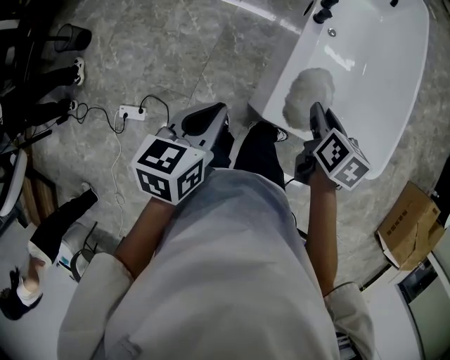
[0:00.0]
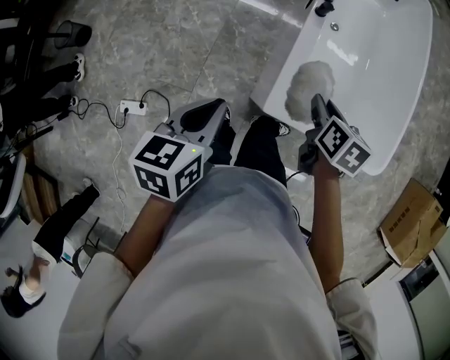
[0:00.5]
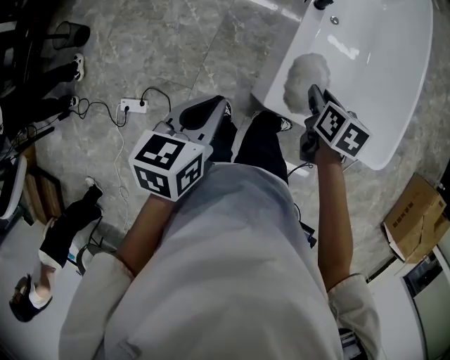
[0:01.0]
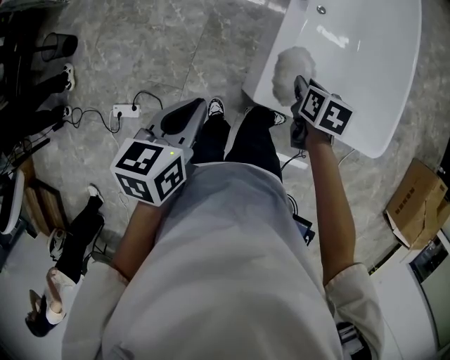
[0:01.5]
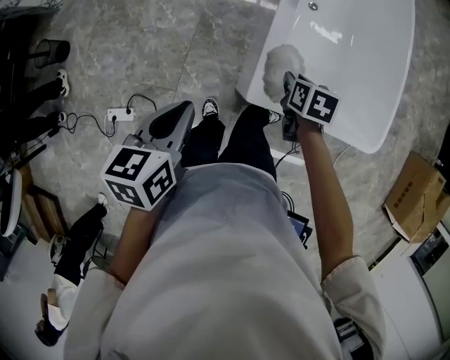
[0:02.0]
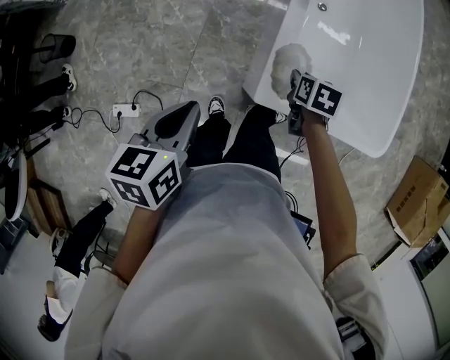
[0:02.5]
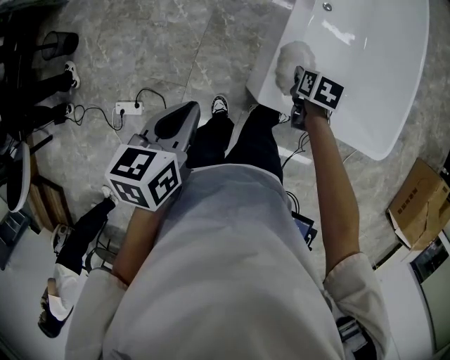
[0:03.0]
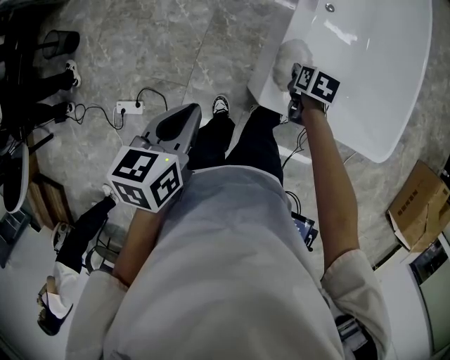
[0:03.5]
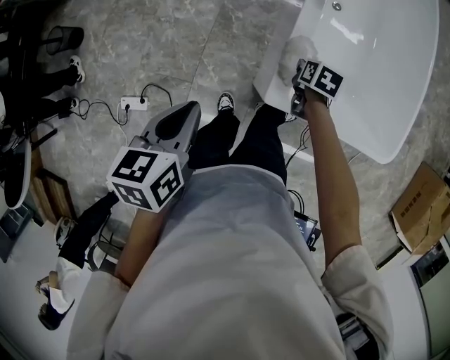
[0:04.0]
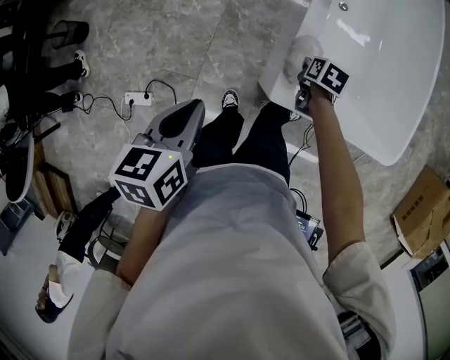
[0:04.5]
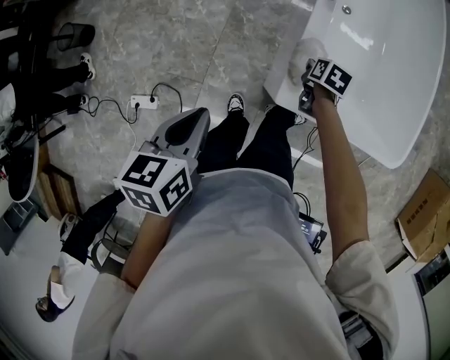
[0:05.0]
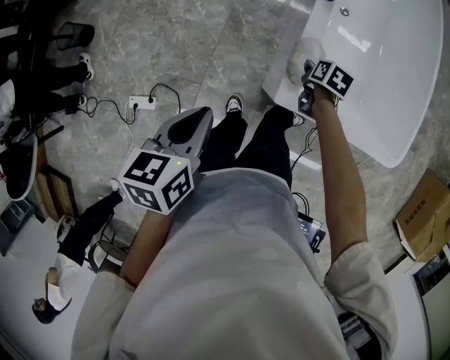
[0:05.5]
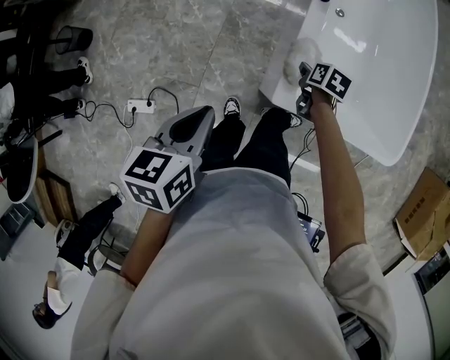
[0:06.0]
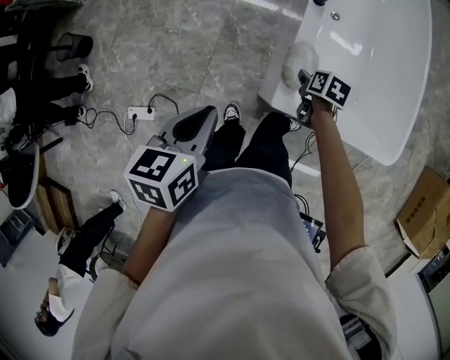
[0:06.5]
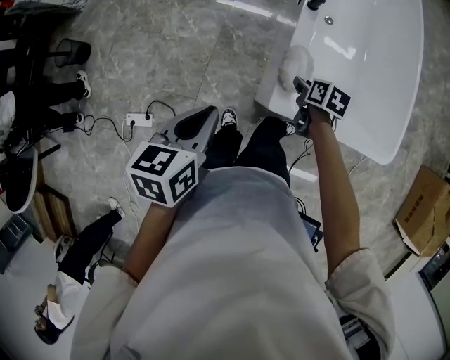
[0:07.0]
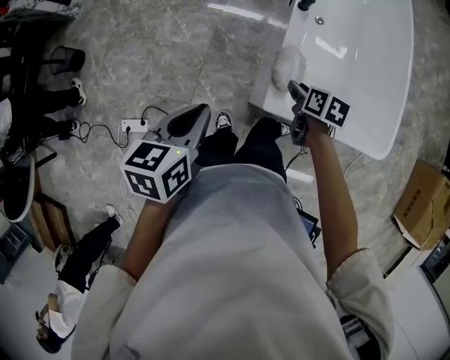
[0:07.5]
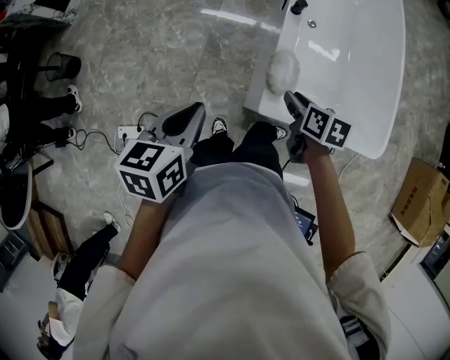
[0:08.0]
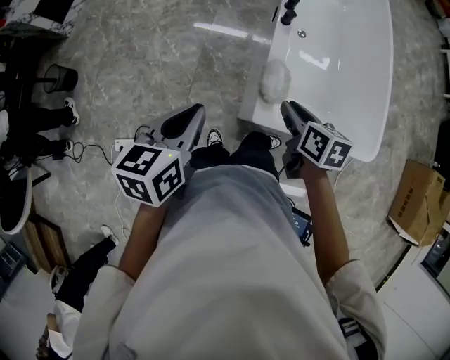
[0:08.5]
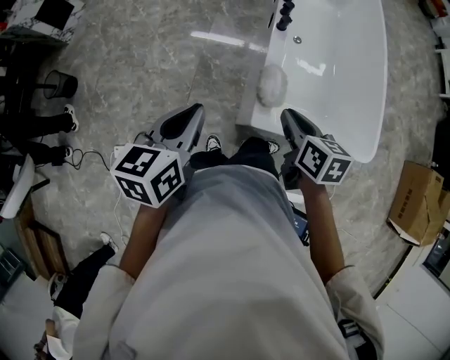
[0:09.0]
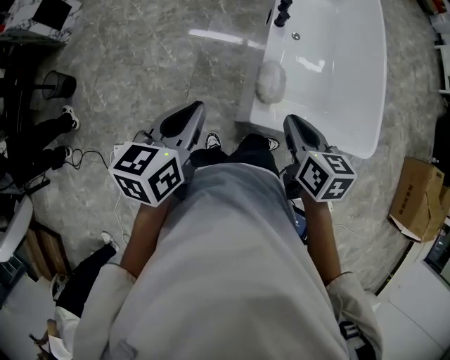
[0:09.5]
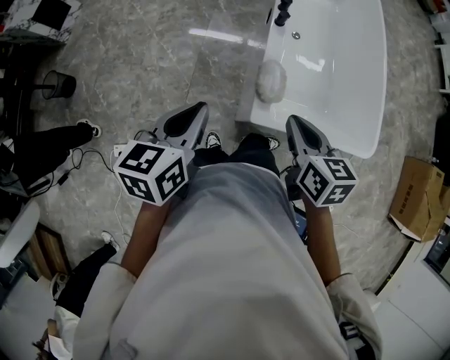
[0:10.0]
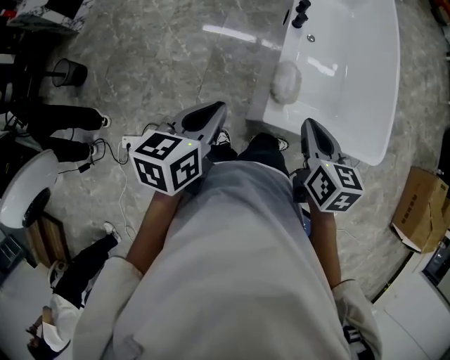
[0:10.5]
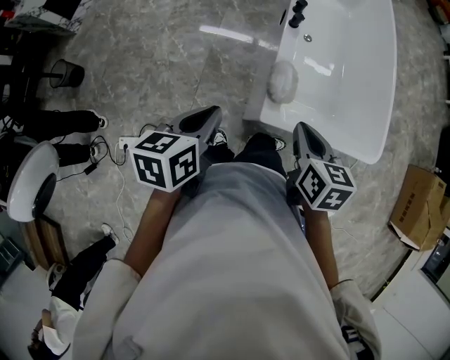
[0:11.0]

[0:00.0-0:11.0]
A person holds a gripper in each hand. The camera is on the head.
0:00.0 to 0:02.0: The right gripper goes roughly 10 cm downward.
0:02.0 to 0:03.5: The right gripper moves downward, roughly 5 cm.
0:03.5 to 0:05.5: There are only small adjustments of the grippers.
0:05.5 to 0:07.5: The right gripper is displaced upward and backward by approximately 10 cm.
0:07.5 to 0:09.0: The right gripper is displaced upward by about 15 cm, and closes, while the left gripper travels upward by approximately 5 cm.
0:09.0 to 0:11.0: The right gripper moves about 5 cm.

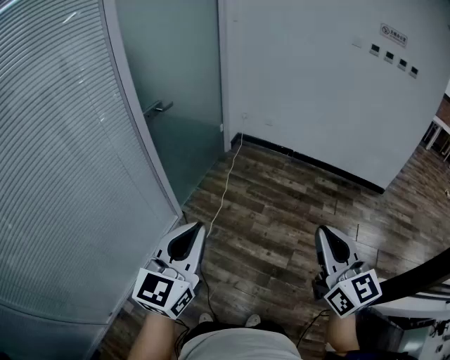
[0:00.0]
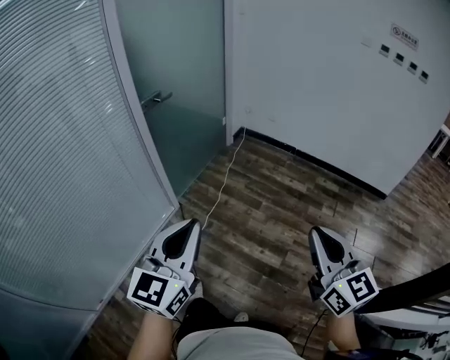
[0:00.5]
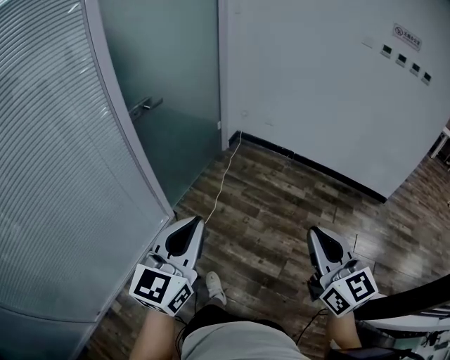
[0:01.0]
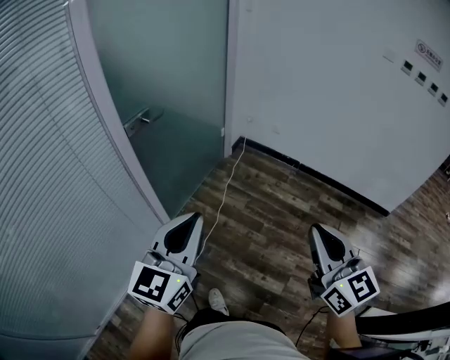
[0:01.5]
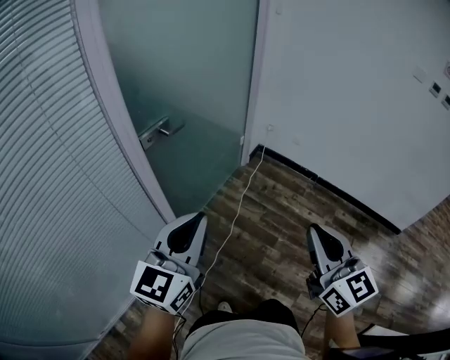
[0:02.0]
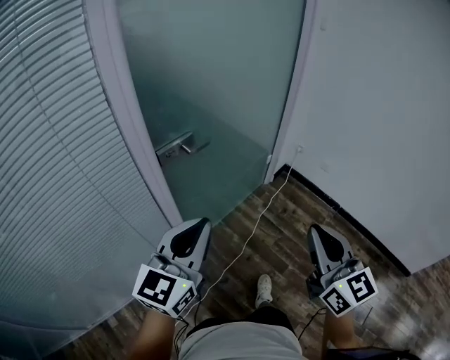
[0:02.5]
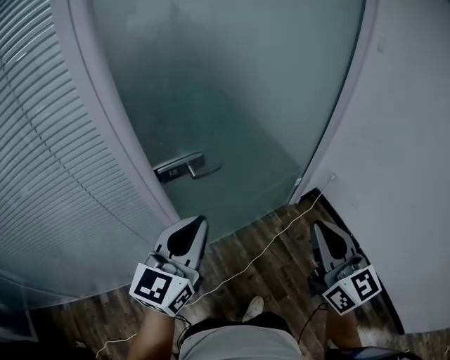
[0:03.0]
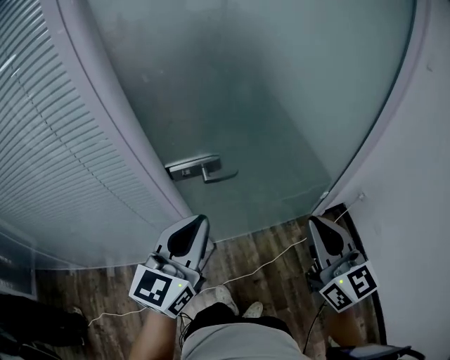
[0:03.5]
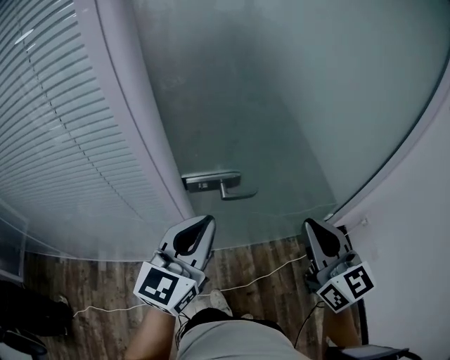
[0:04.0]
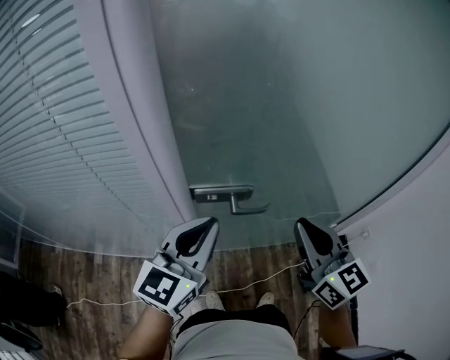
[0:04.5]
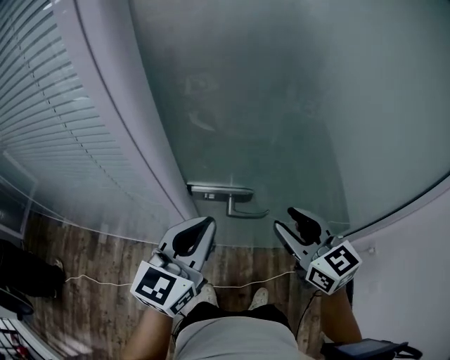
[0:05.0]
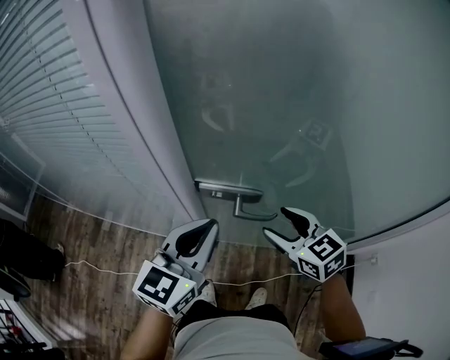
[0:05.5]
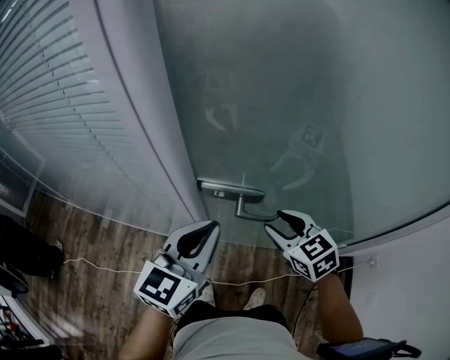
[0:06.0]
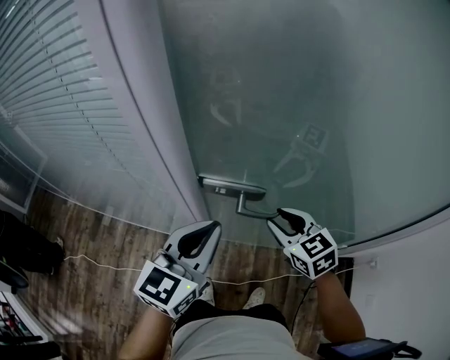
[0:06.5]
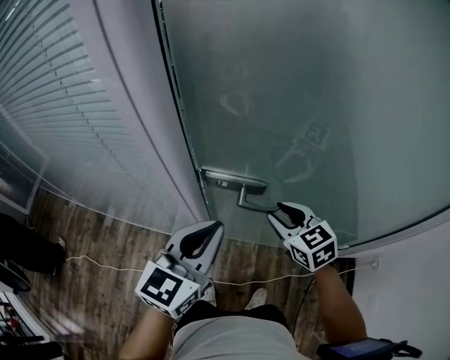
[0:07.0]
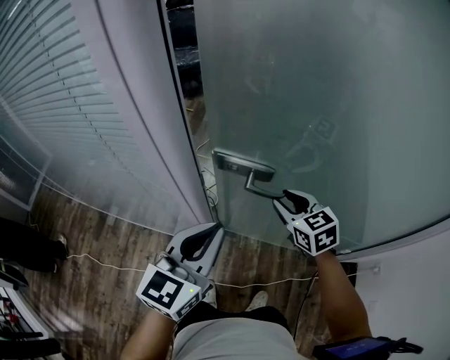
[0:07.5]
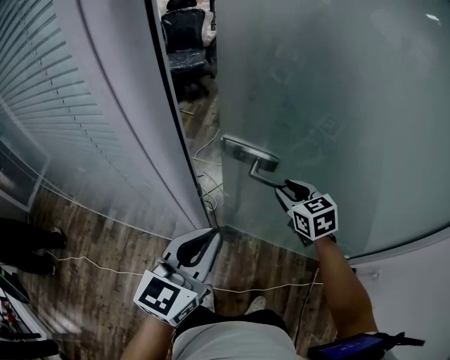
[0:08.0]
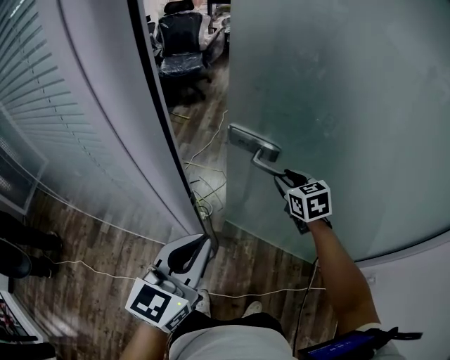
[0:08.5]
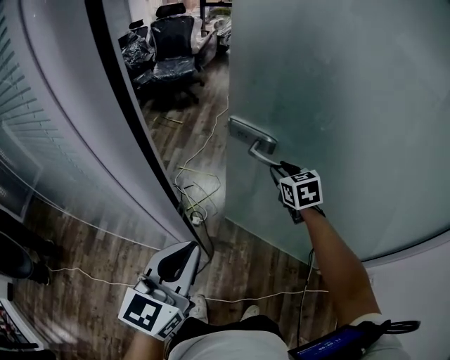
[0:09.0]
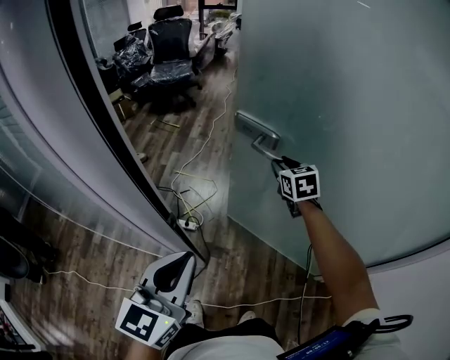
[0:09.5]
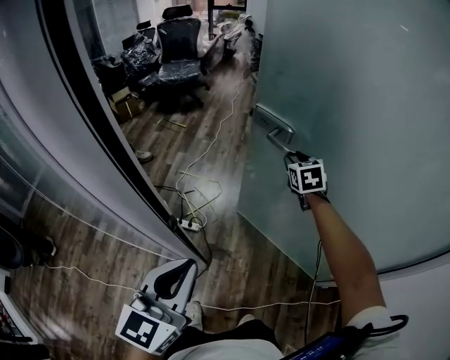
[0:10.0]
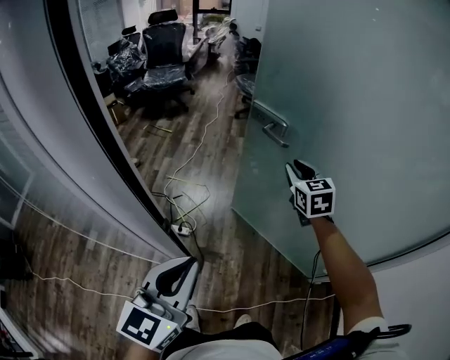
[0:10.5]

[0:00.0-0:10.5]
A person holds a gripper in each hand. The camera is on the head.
0:00.0 to 0:02.0: The two grippers go about 40 cm forward.
0:02.0 to 0:04.0: The left gripper moves some 30 cm, and changes its angle by roughly 40 degrees, while the right gripper moves approximately 50 cm, and turns by about 50 degrees.
0:04.0 to 0:06.5: The right gripper travels downward and forward by roughly 25 cm, points its fingers roughly 30 degrees further downward, and opens; the left gripper heads downward and forward, covering approximately 5 cm.
0:06.5 to 0:08.5: The right gripper heads forward, covering about 20 cm.
0:08.5 to 0:10.5: The right gripper shifts some 15 cm forward, to the right and upward.

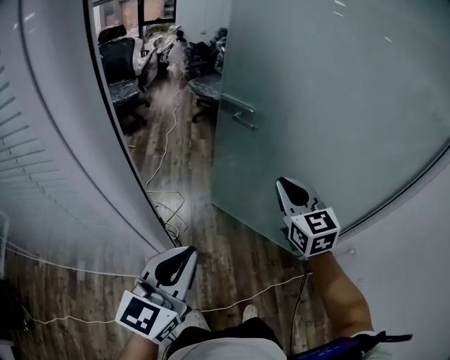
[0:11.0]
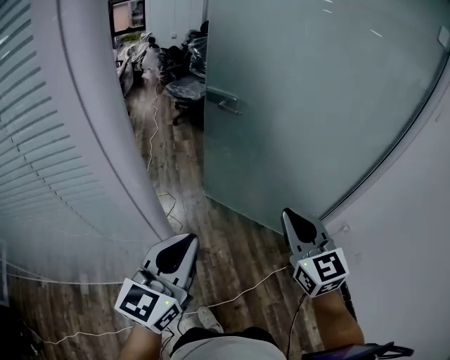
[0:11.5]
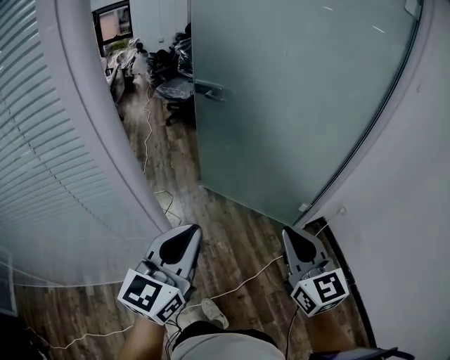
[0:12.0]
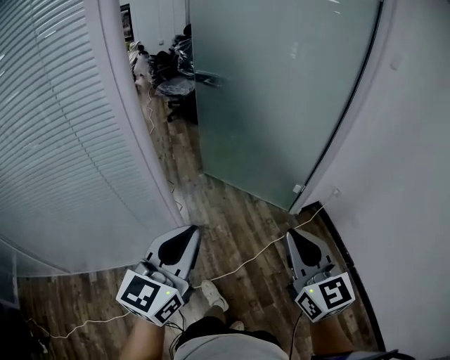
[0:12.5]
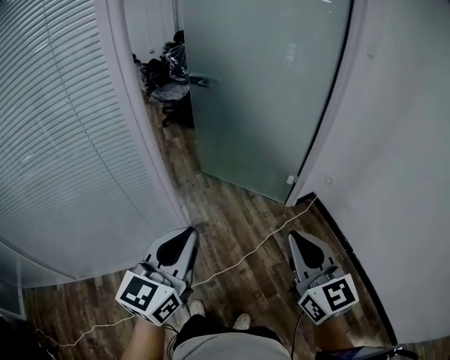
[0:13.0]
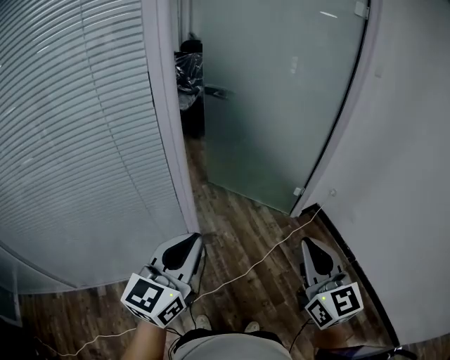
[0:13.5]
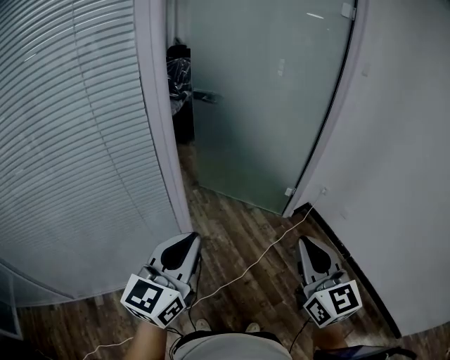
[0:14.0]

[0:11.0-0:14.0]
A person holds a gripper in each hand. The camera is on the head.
0:11.0 to 0:12.5: The left gripper travels backward by roughly 25 cm; the right gripper travels backward by approximately 50 cm.
0:12.5 to 0:14.0: The left gripper moves to the left and backward, some 15 cm, while the right gripper is displaced backward and to the left by approximately 15 cm.

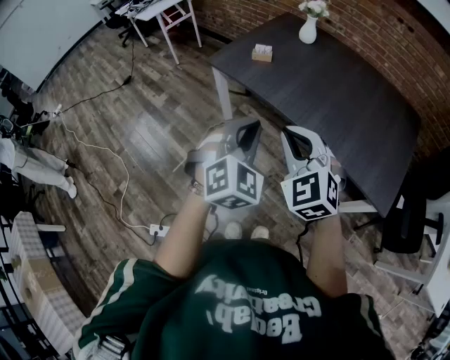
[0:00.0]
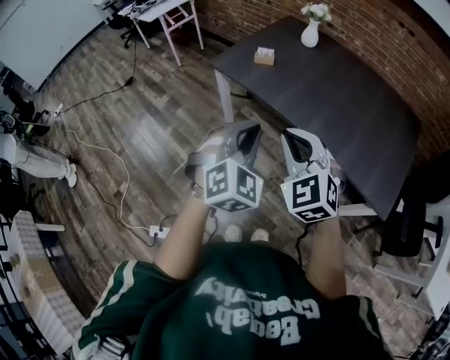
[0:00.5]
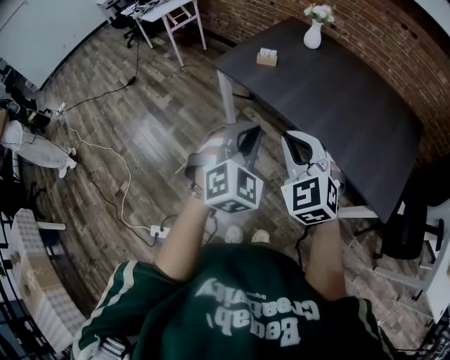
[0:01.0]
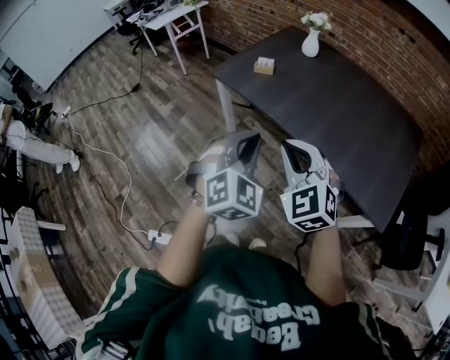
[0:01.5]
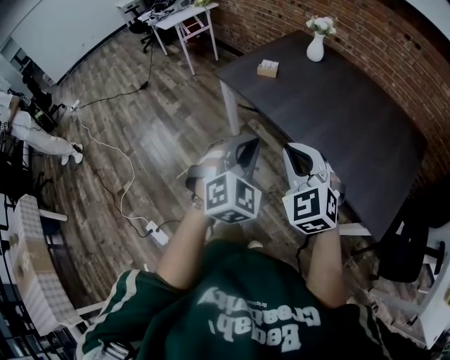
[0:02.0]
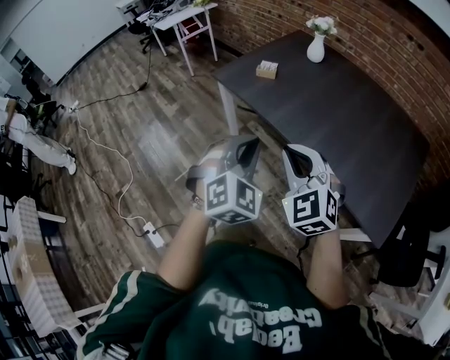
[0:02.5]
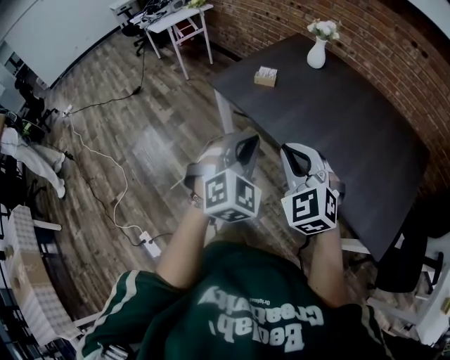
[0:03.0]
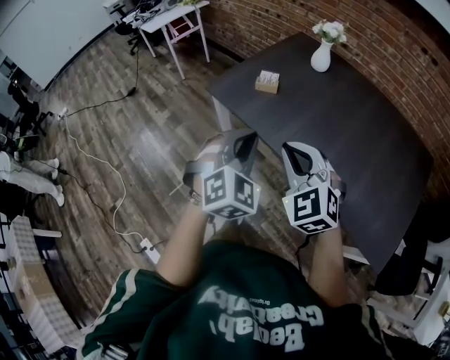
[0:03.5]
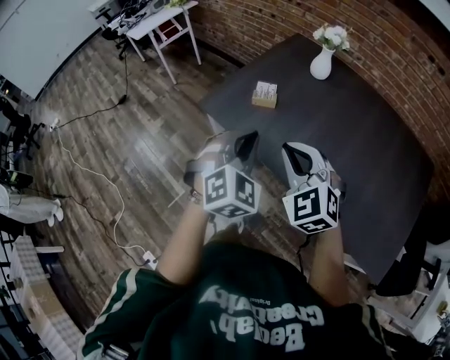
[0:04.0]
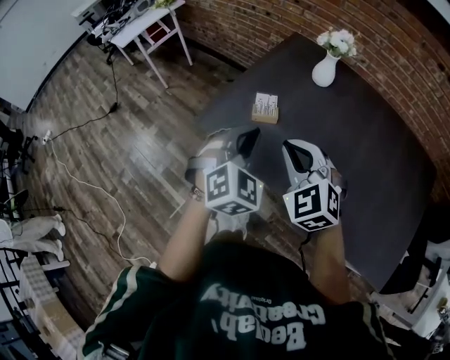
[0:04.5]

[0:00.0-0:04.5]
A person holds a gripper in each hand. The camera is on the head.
0:00.0 to 0:02.0: The grippers both shift to the right by about 5 cm.
0:02.0 to 0:04.5: The pair of grippers is taken forward, approximately 50 cm.
